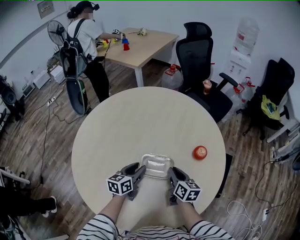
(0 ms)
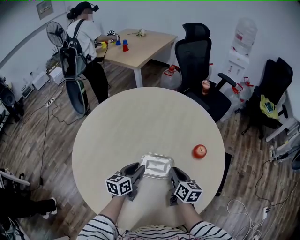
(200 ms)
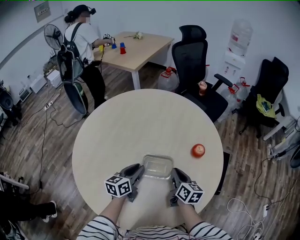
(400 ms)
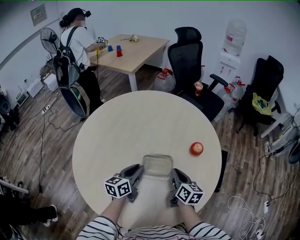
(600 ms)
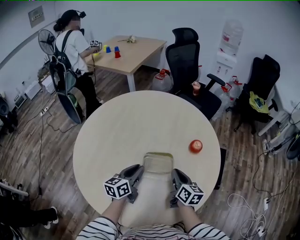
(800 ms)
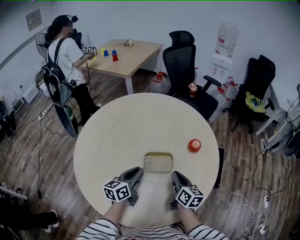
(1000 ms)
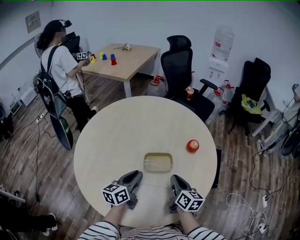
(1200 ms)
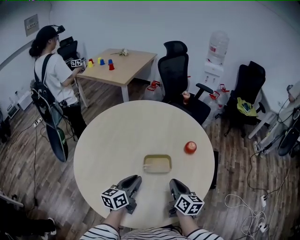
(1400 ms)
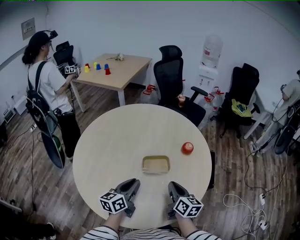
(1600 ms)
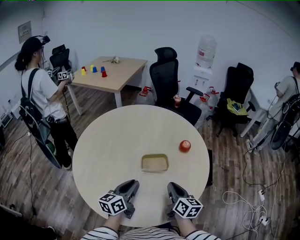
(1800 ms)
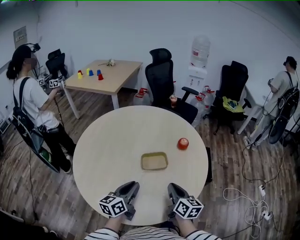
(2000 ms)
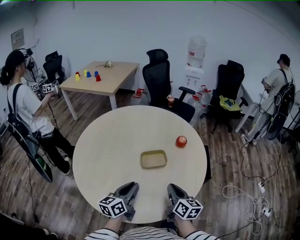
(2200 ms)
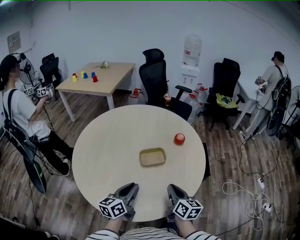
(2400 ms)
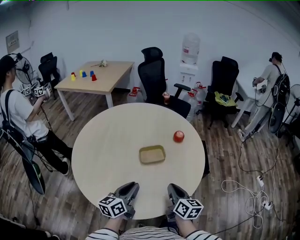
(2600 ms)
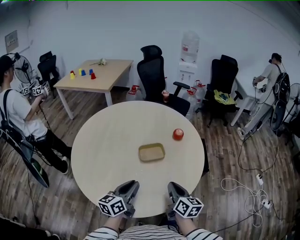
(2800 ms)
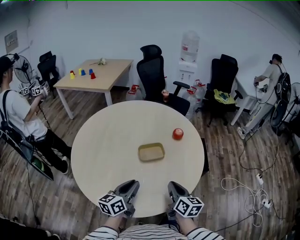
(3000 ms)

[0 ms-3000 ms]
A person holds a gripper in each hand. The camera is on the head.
0 ms to 1600 ms: Both grippers move backward and upward, some 20 cm.
1600 ms to 3000 ms: The grippers both shift backward by about 10 cm.

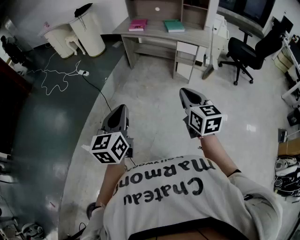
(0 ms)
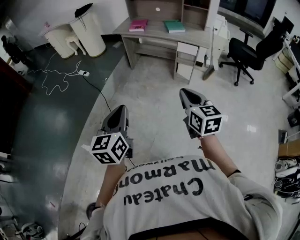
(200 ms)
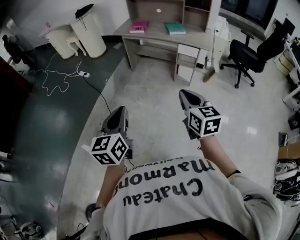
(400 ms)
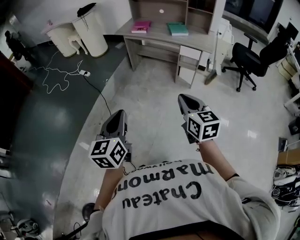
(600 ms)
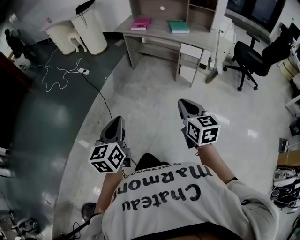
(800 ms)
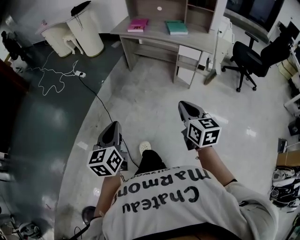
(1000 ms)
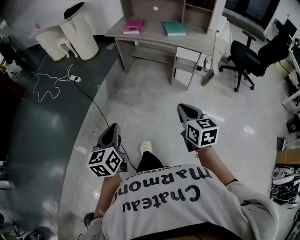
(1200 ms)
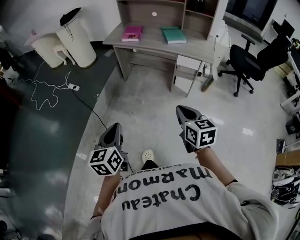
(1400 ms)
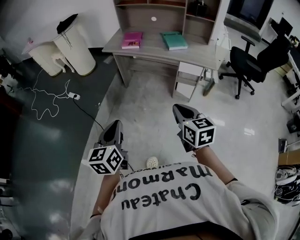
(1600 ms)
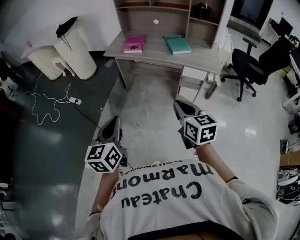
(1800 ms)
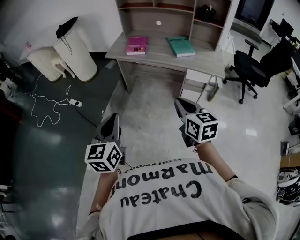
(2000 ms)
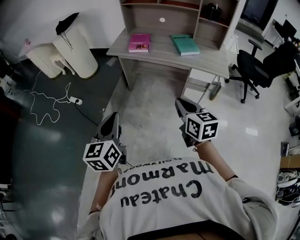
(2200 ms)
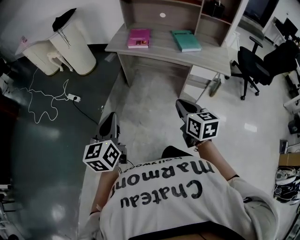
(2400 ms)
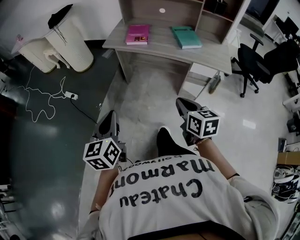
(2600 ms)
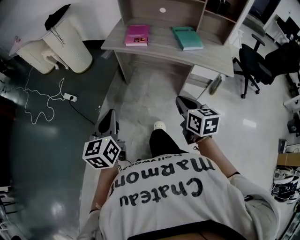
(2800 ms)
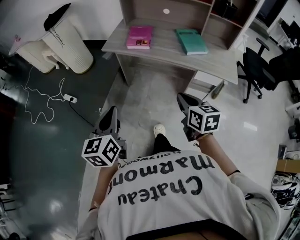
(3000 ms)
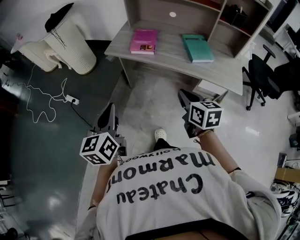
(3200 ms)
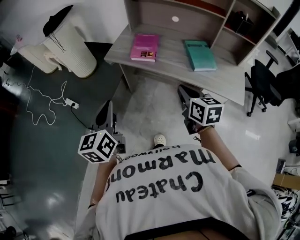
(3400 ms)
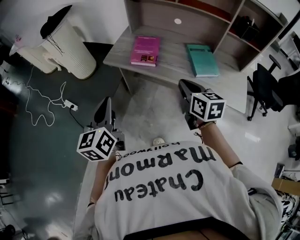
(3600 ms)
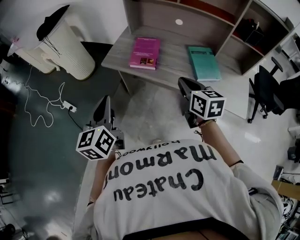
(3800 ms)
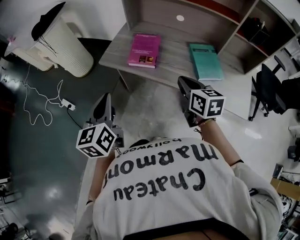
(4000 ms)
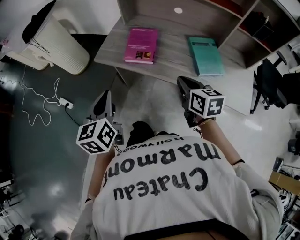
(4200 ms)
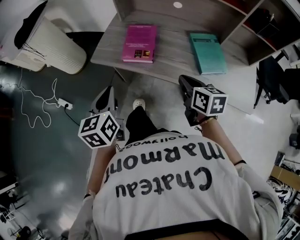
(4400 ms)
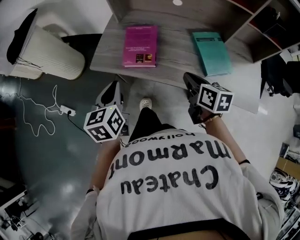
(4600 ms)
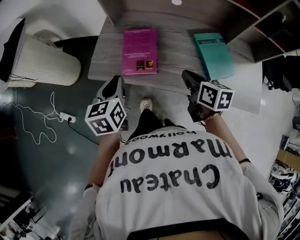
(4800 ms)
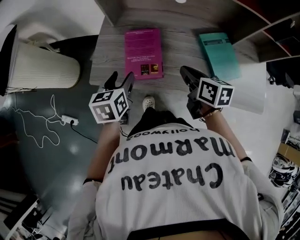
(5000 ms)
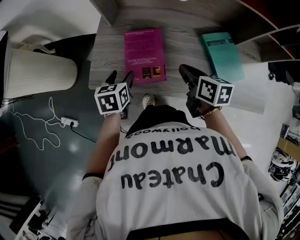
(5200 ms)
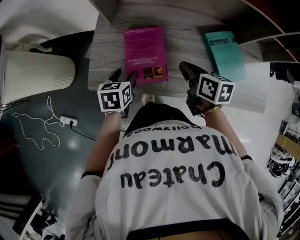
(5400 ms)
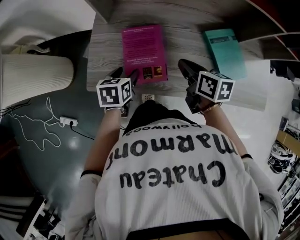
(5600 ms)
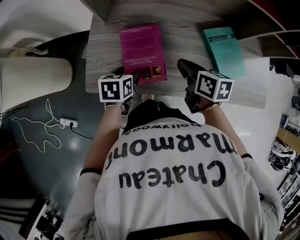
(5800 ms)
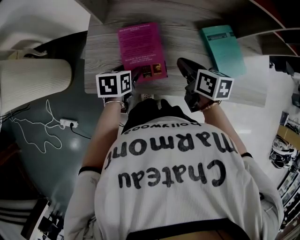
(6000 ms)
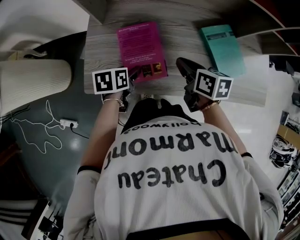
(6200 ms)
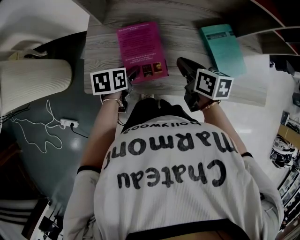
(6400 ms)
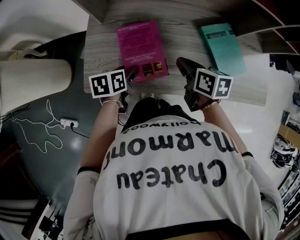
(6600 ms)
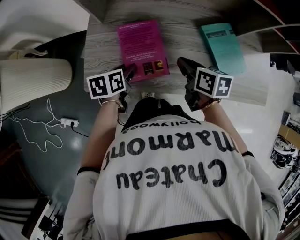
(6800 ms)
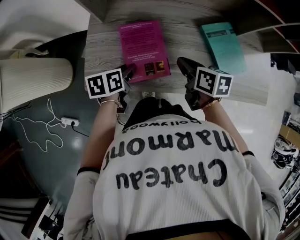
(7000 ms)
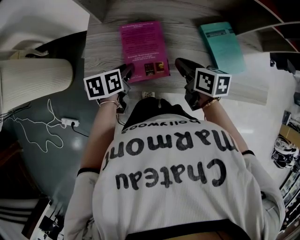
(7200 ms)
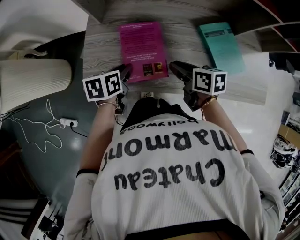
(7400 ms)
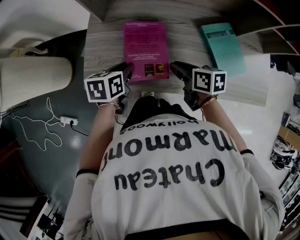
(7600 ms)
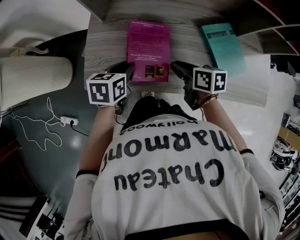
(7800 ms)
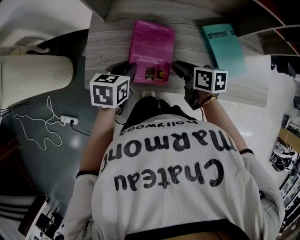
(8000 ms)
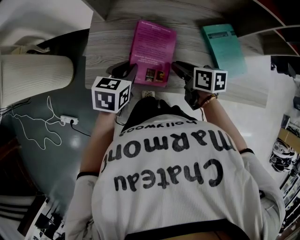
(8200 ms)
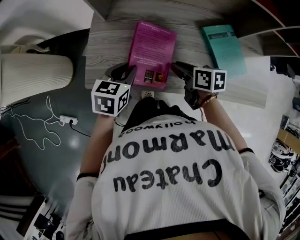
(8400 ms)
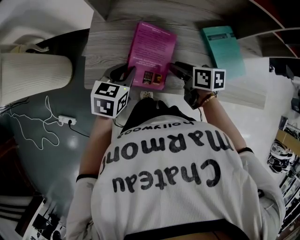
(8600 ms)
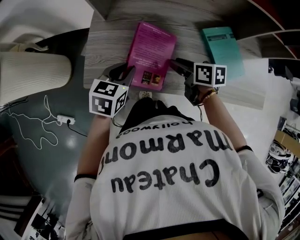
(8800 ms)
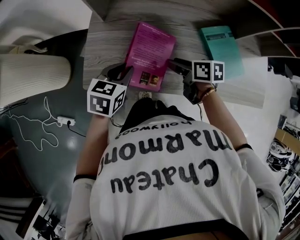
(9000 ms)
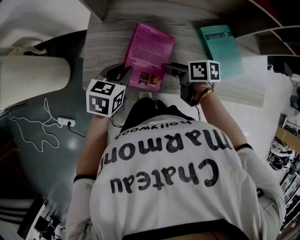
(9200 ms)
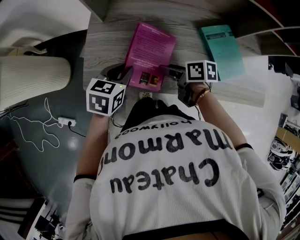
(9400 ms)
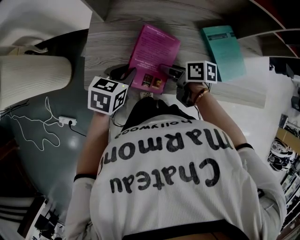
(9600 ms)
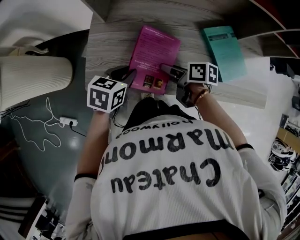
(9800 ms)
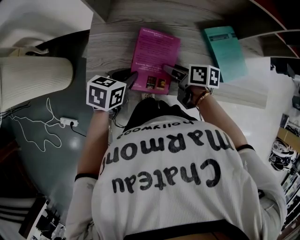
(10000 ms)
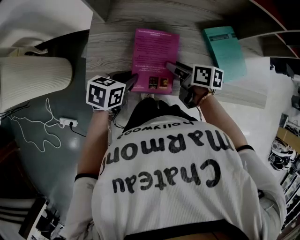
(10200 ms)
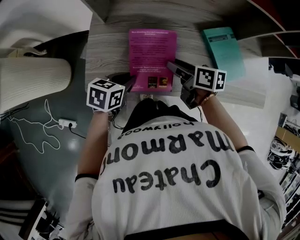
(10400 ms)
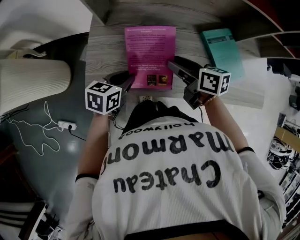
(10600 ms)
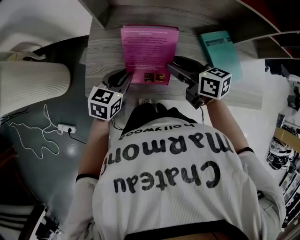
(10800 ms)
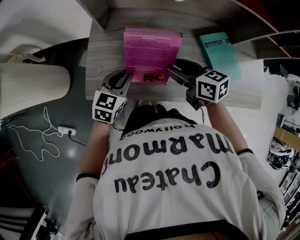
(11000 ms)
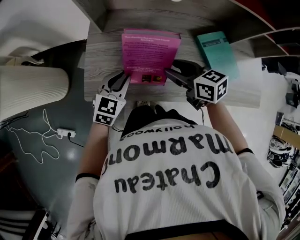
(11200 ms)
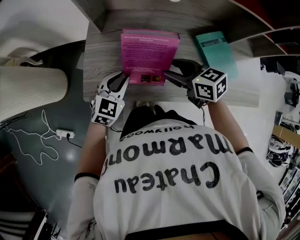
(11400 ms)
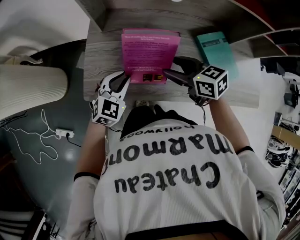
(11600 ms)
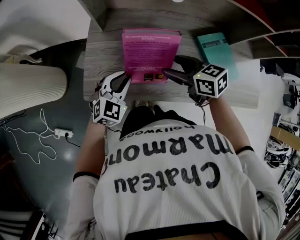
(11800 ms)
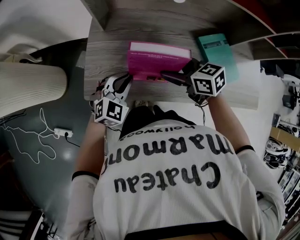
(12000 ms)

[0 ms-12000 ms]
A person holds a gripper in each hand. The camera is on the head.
0 ms to 1600 ms: The two grippers go some 25 cm forward.
1600 ms to 3000 ms: The two grippers go roughly 25 cm forward.
3000 ms to 4400 ms: Both grippers travel together forward, approximately 30 cm.
4400 ms to 6000 ms: The right gripper shifts by roughly 20 cm, while the left gripper shifts by roughly 30 cm, angles its fingers downward, by approximately 30 degrees, and opens its fingers.
6000 ms to 7600 ms: The left gripper closes.
7600 ms to 9000 ms: The left gripper rotates roughly 20 degrees.
9000 ms to 10400 ms: The left gripper ends up approximately 5 cm from where it was.
10400 ms to 12000 ms: The right gripper swivels some 40 degrees; the left gripper rolls clockwise, seen from behind, by approximately 50 degrees.

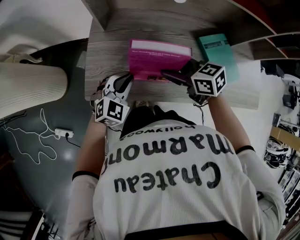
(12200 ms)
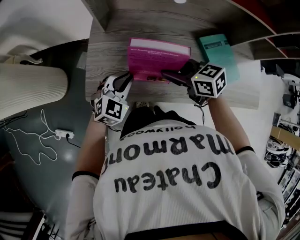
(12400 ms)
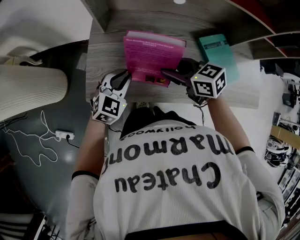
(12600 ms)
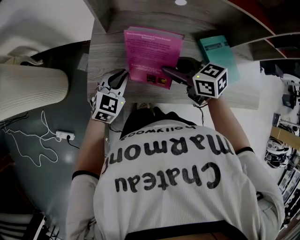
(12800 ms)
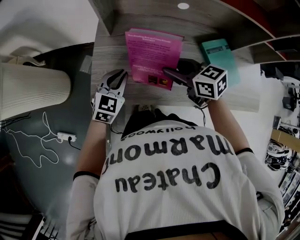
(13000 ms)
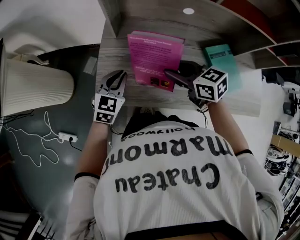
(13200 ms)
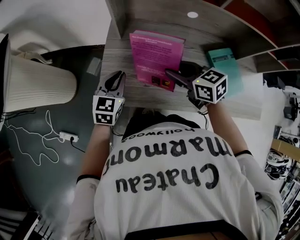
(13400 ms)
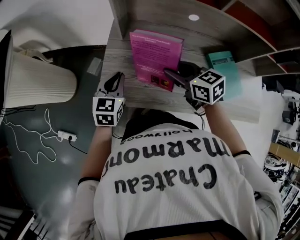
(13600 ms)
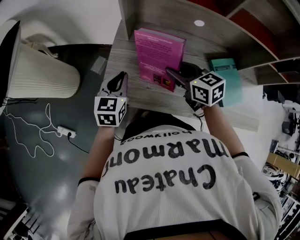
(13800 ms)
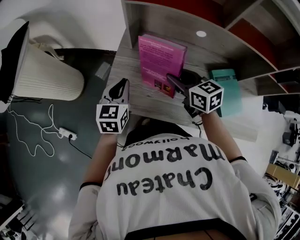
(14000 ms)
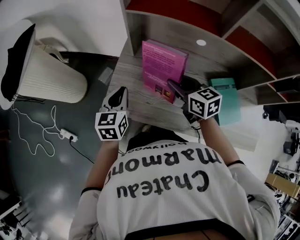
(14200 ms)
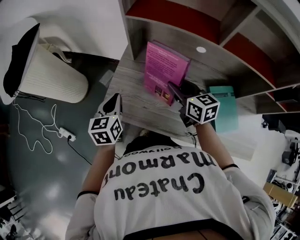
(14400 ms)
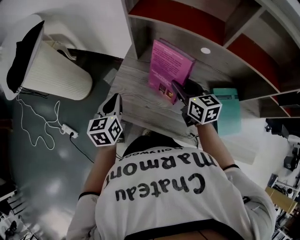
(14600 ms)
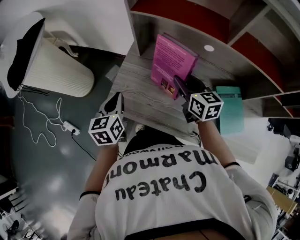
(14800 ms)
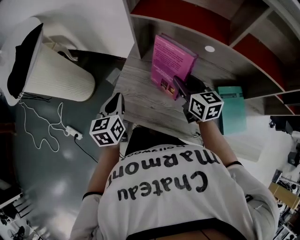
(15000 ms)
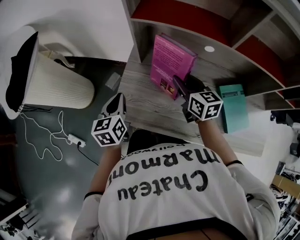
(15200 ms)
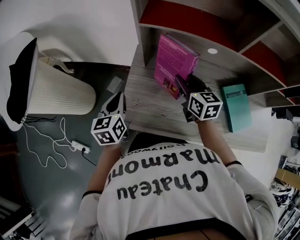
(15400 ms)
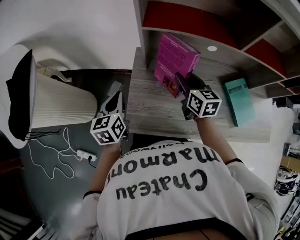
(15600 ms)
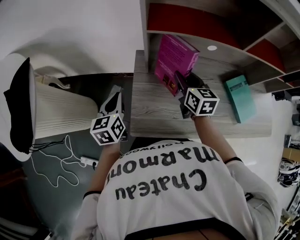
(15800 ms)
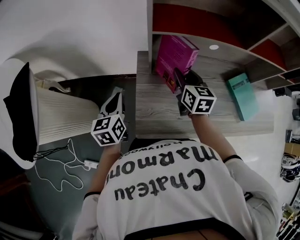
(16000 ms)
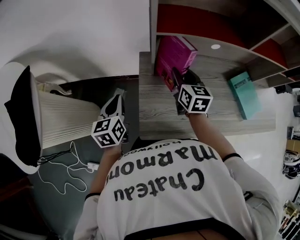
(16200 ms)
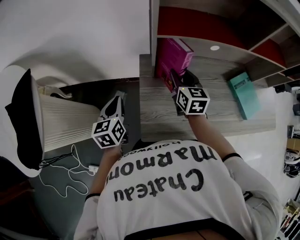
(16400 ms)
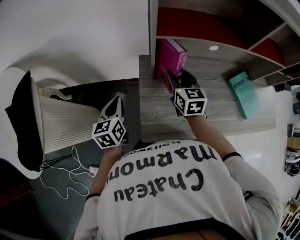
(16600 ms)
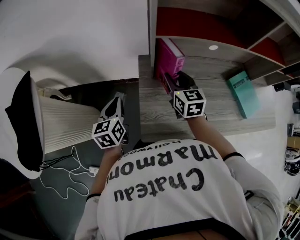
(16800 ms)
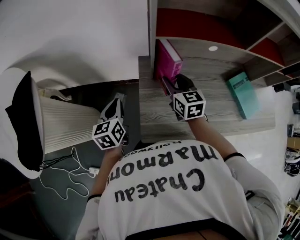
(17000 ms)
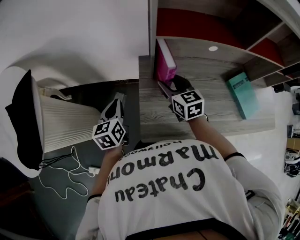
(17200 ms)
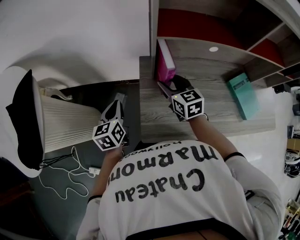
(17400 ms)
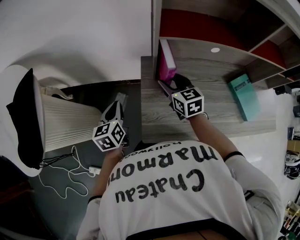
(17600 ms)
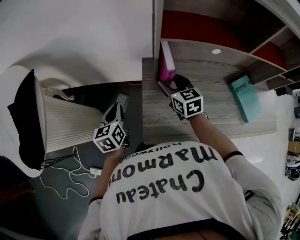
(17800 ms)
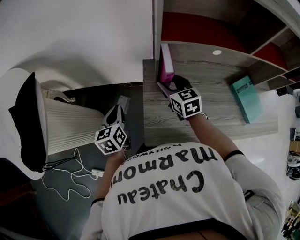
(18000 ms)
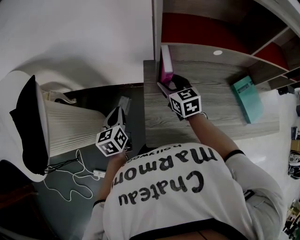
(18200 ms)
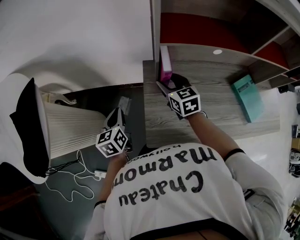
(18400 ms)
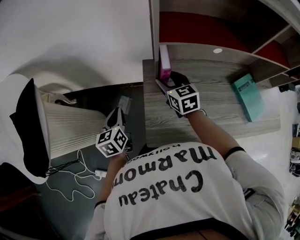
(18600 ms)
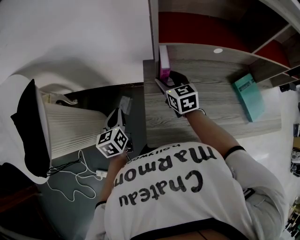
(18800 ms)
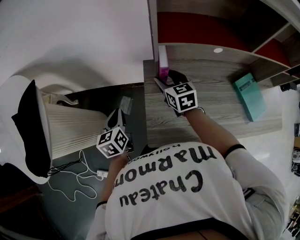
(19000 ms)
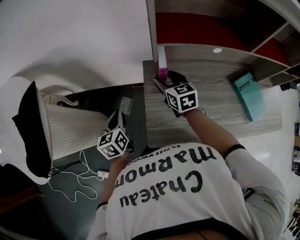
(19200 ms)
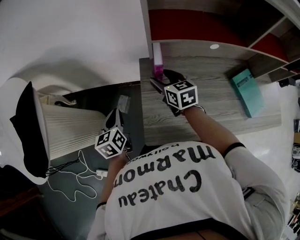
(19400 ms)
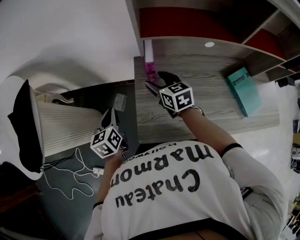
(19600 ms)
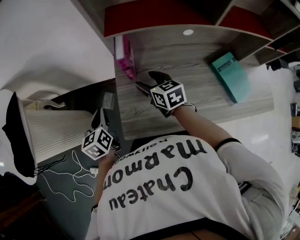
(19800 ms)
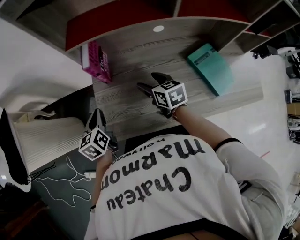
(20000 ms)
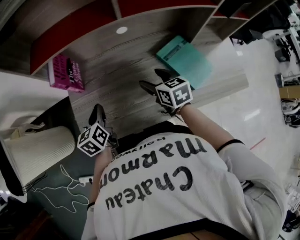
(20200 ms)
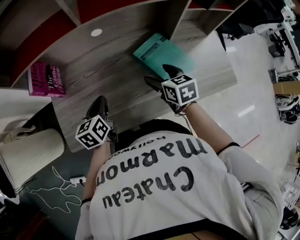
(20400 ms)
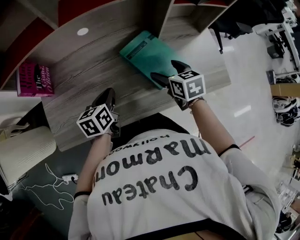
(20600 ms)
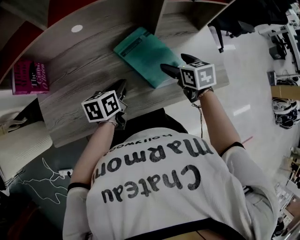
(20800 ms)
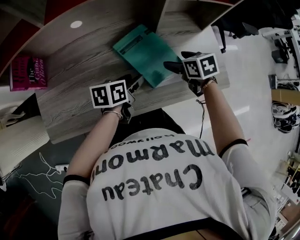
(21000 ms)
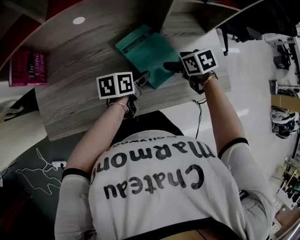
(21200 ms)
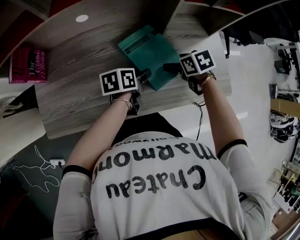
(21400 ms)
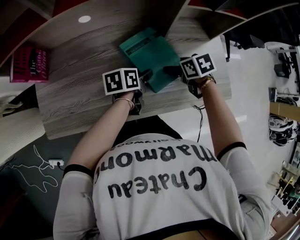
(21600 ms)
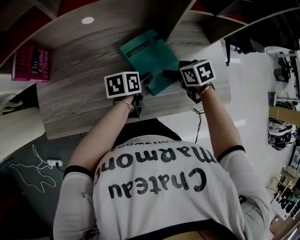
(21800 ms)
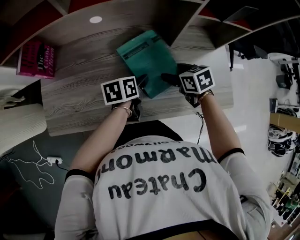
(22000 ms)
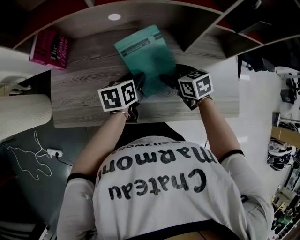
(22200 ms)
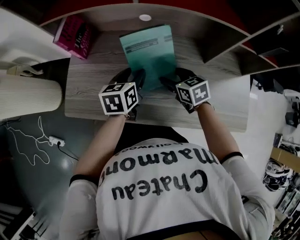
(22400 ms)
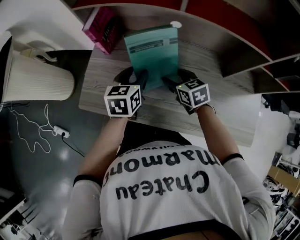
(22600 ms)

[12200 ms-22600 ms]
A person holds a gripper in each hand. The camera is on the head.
12200 ms to 13600 ms: The right gripper shifts by approximately 5 cm; the left gripper heads to the left and forward, covering some 10 cm, and changes its angle by roughly 40 degrees.
13600 ms to 15200 ms: The right gripper heads forward, covering approximately 10 cm. Meanwhile the left gripper is displaced to the left by about 5 cm, and rotates some 30 degrees.
15200 ms to 16600 ms: The two grippers go about 15 cm to the left and forward. The right gripper rotates some 30 degrees.
16600 ms to 18200 ms: The right gripper heads to the left, covering some 5 cm.
18200 ms to 19600 ms: There are only small adjustments of the grippers.
19600 ms to 21200 ms: The two grippers travel together, approximately 60 cm. The right gripper swivels approximately 30 degrees. The left gripper swivels about 50 degrees, and opens.
21200 ms to 22600 ms: The right gripper shifts by some 30 cm, and swivels roughly 30 degrees. Meanwhile the left gripper ends up roughly 30 cm from where it was, and rotates approximately 40 degrees.
